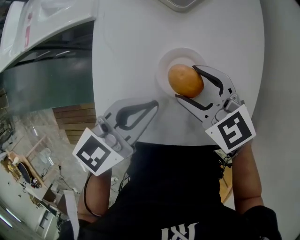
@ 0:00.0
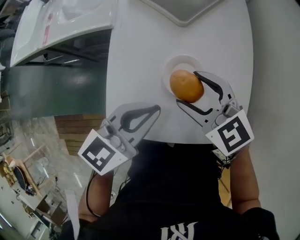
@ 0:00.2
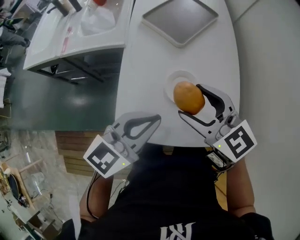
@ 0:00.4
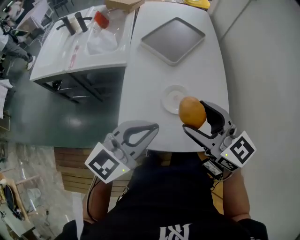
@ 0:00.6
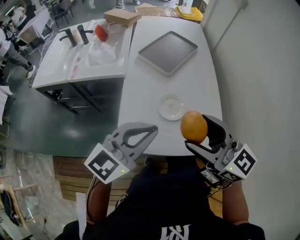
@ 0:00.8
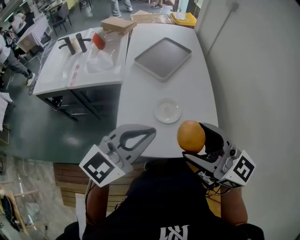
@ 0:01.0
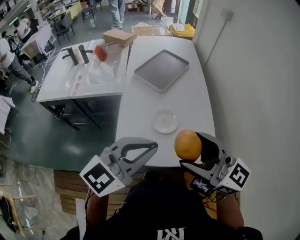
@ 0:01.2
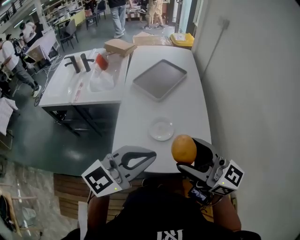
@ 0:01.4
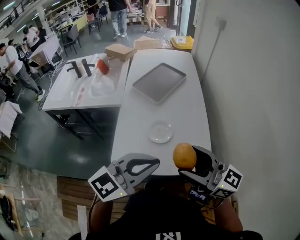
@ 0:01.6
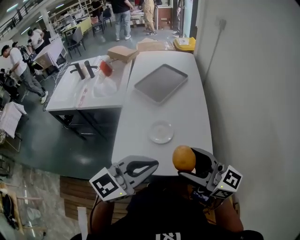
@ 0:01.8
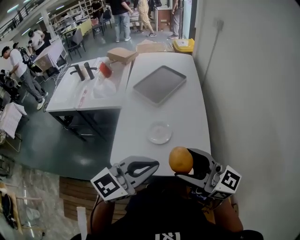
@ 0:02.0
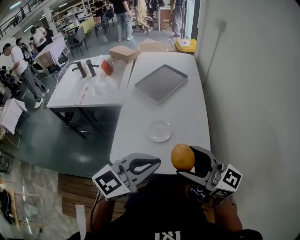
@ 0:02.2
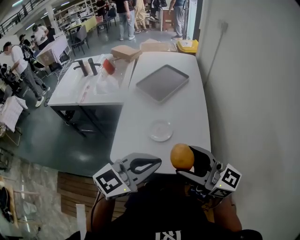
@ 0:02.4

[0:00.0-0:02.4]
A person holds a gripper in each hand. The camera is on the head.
0:00.0 to 0:01.2: Both grippers move upward and backward, approximately 40 cm. The right gripper tips its fingers upward by some 40 degrees; the left gripper turns by about 30 degrees.
0:01.2 to 0:02.4: The right gripper is displaced to the right by about 10 cm, while the left gripper shifts some 10 cm to the right and backward.

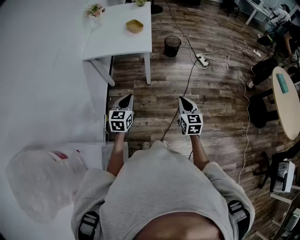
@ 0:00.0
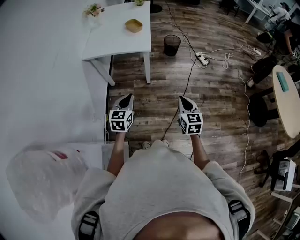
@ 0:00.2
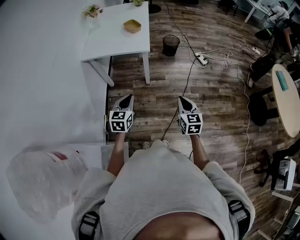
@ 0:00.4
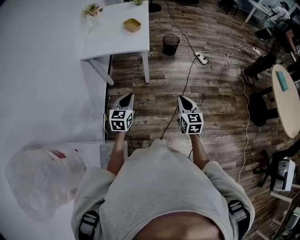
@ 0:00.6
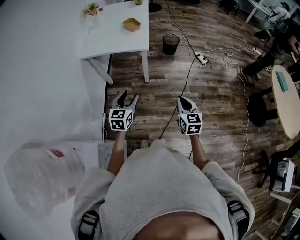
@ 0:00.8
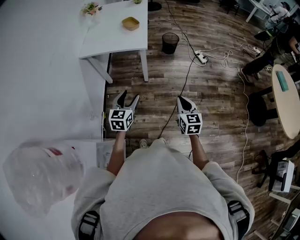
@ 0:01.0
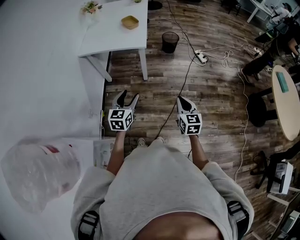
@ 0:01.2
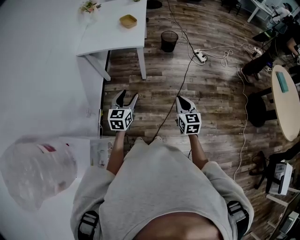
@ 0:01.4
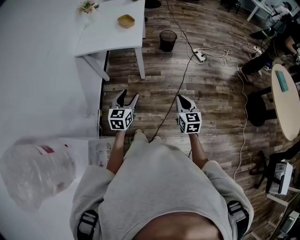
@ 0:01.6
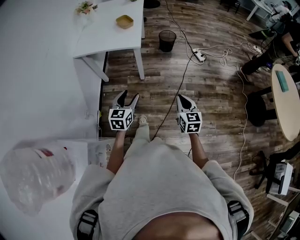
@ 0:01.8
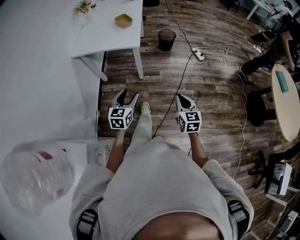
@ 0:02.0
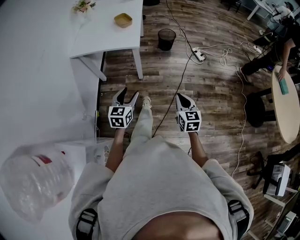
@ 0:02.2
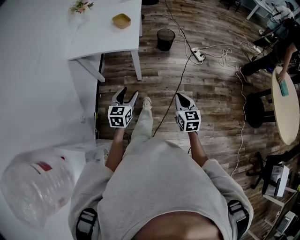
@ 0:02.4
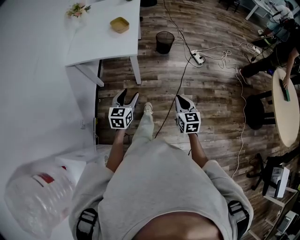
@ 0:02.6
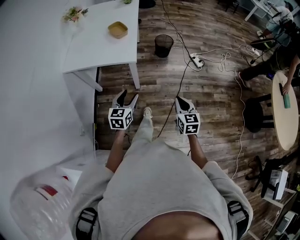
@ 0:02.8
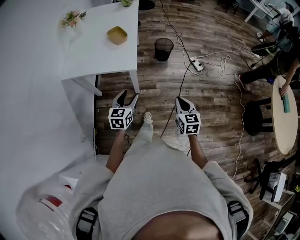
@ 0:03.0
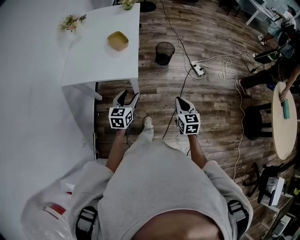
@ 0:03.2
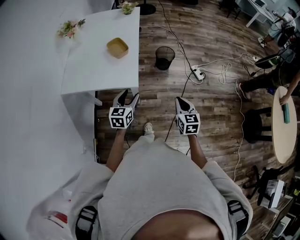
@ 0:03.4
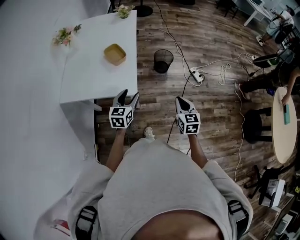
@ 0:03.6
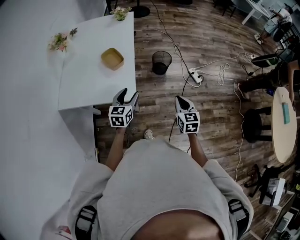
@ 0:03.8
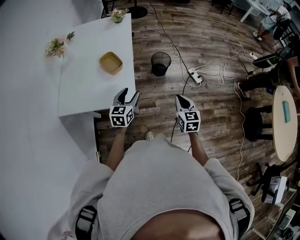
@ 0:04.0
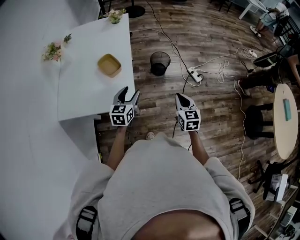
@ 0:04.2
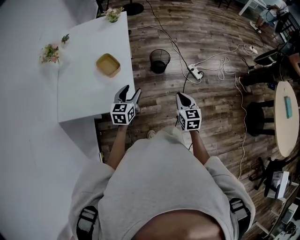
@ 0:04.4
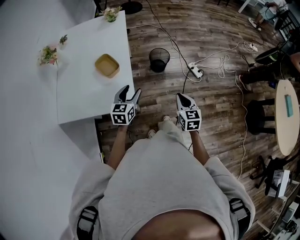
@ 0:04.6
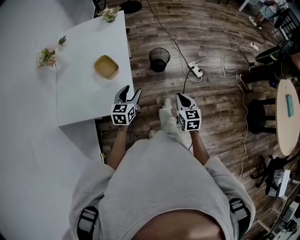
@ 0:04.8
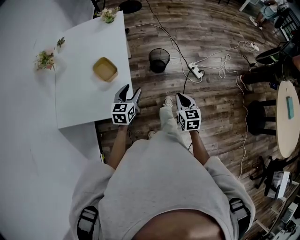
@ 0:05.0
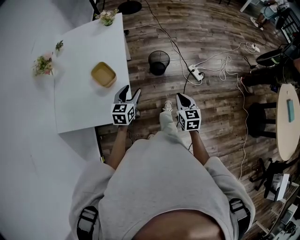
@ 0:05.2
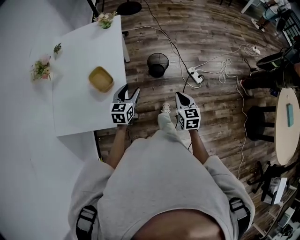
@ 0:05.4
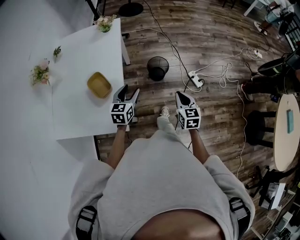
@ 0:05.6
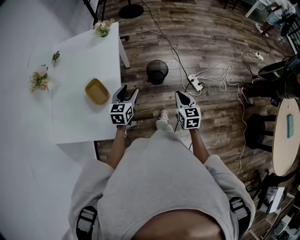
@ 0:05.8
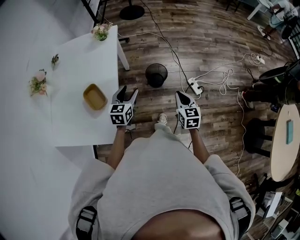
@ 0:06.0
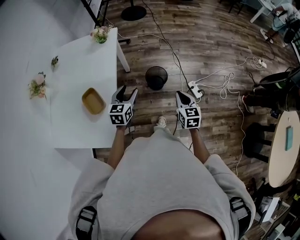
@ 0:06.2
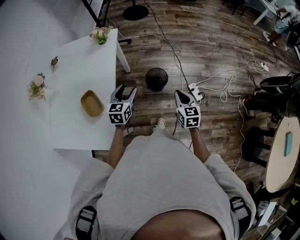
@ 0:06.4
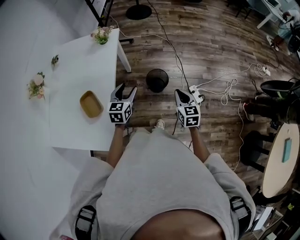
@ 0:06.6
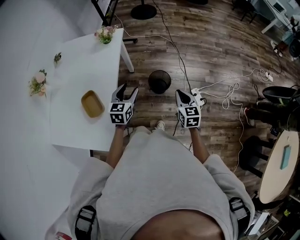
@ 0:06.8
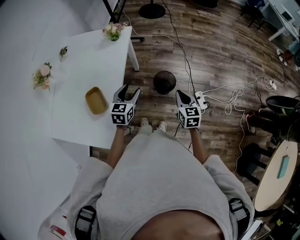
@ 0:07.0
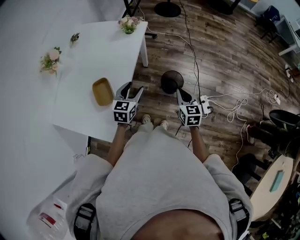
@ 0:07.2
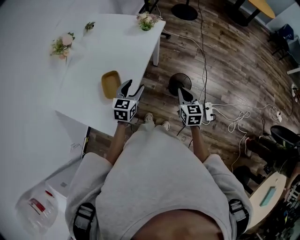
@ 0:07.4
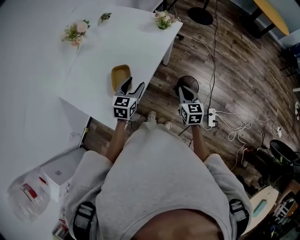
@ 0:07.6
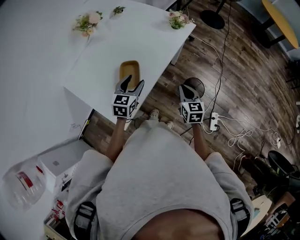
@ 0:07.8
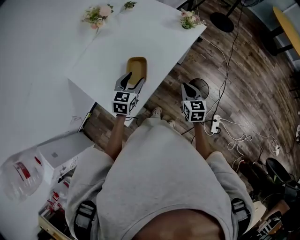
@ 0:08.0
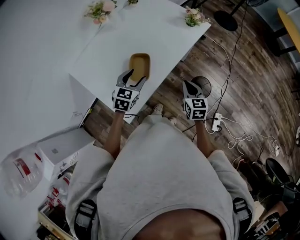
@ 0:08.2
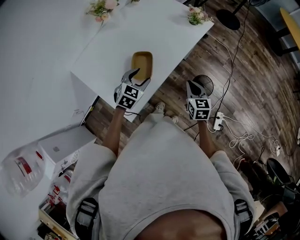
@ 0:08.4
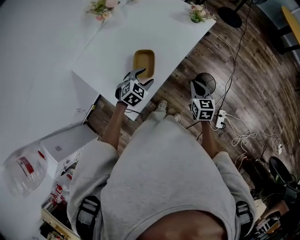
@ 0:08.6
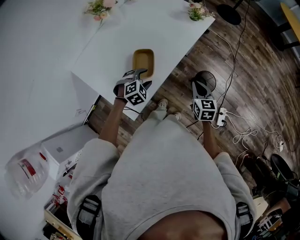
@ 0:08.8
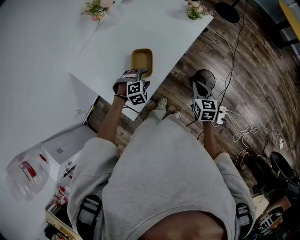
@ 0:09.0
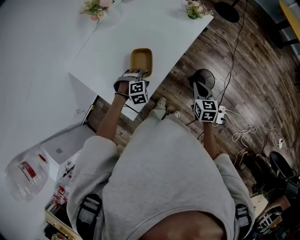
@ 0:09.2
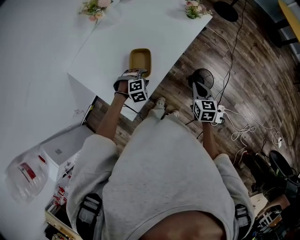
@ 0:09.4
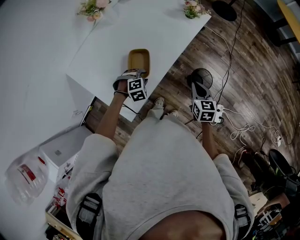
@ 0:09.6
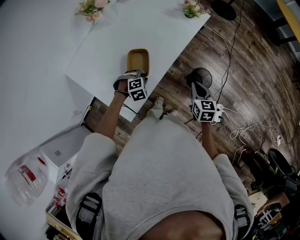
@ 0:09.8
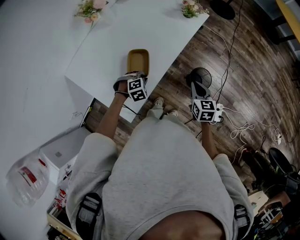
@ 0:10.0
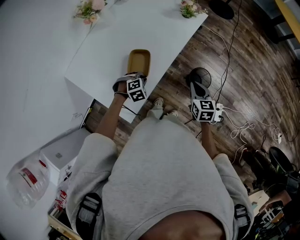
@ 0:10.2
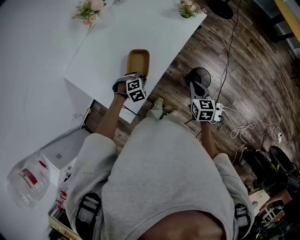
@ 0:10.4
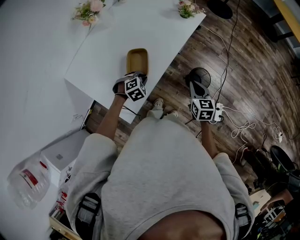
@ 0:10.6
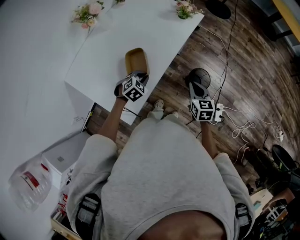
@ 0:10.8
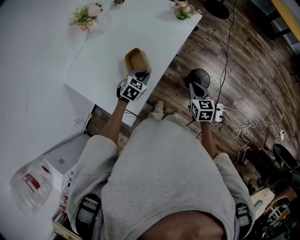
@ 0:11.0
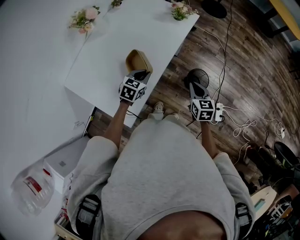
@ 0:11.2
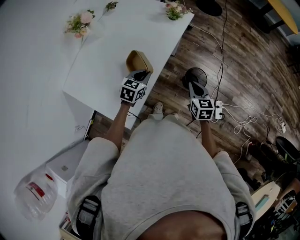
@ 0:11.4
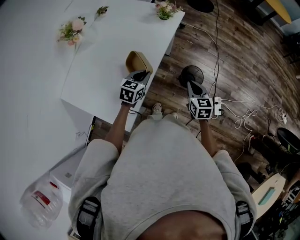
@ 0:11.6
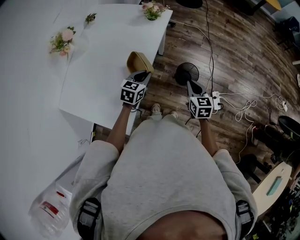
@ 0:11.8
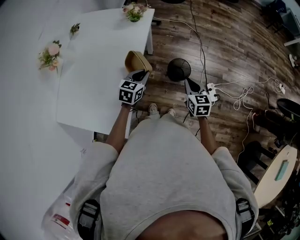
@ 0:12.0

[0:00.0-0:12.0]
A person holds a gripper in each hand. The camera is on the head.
0:00.0 to 0:01.6: The grippers both shift to the right by roughly 10 cm. The left gripper opens.
0:01.6 to 0:03.0: Both grippers move forward, some 25 cm.
0:03.0 to 0:04.4: The grippers both shift forward by about 25 cm.
0:04.4 to 0:06.0: The grippers both shift forward by approximately 25 cm.
0:06.0 to 0:07.6: The right gripper changes place by approximately 20 cm, and changes its angle by roughly 30 degrees; the left gripper moves approximately 15 cm, and rotates some 30 degrees.
0:07.6 to 0:09.0: The left gripper is displaced downward and to the left by roughly 15 cm, and rotates around the line of its fingers by some 50 degrees, clockwise from behind.
0:09.0 to 0:10.4: The left gripper closes up.
0:10.4 to 0:12.0: The left gripper goes some 20 cm to the right, upward and forward, and tips its fingers upward by about 30 degrees. Meanwhile the right gripper heads to the right, covering approximately 10 cm, and swivels some 20 degrees.

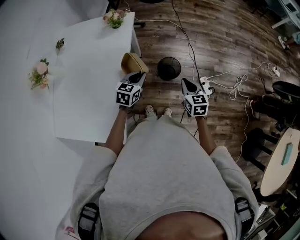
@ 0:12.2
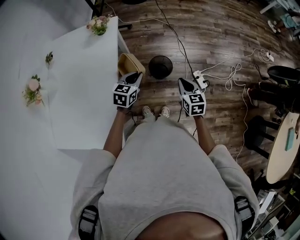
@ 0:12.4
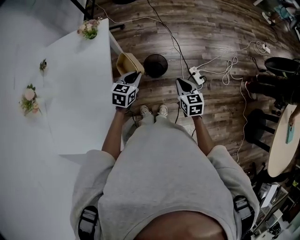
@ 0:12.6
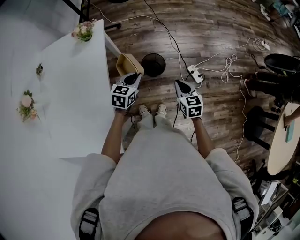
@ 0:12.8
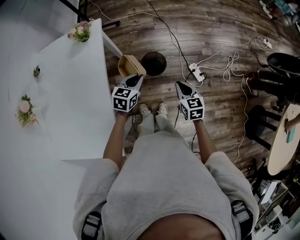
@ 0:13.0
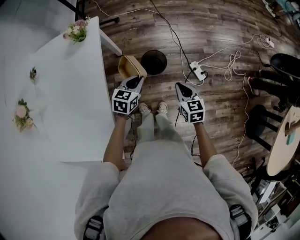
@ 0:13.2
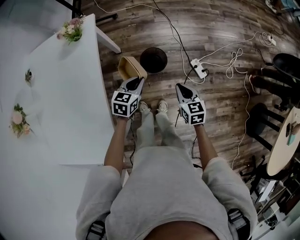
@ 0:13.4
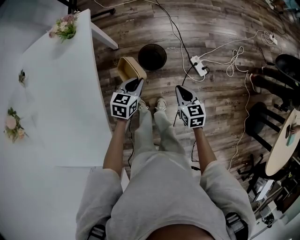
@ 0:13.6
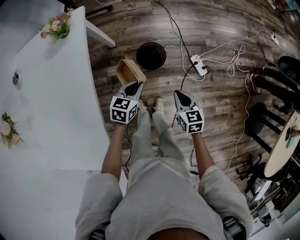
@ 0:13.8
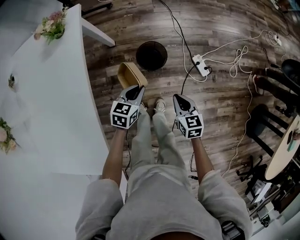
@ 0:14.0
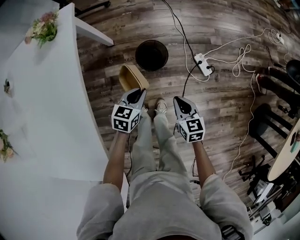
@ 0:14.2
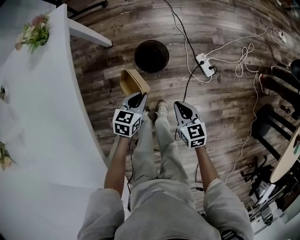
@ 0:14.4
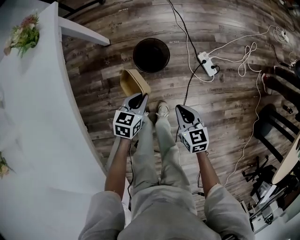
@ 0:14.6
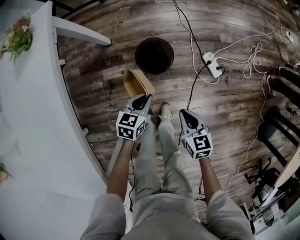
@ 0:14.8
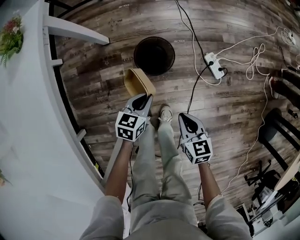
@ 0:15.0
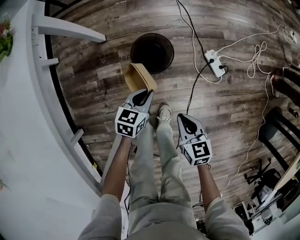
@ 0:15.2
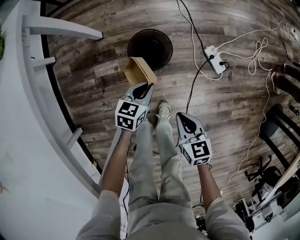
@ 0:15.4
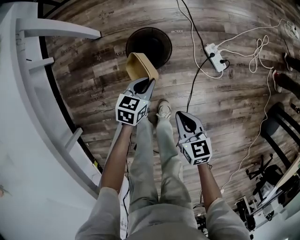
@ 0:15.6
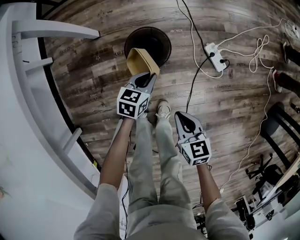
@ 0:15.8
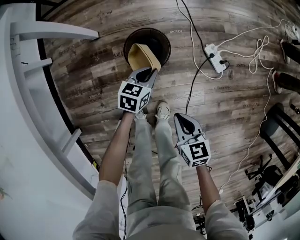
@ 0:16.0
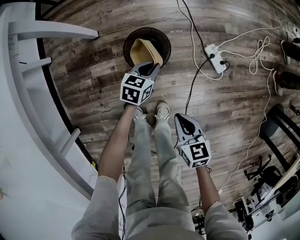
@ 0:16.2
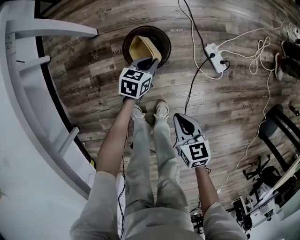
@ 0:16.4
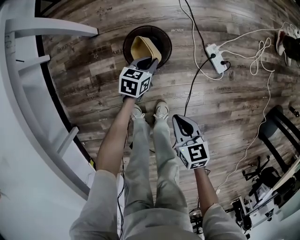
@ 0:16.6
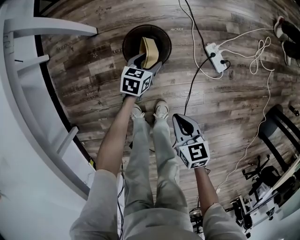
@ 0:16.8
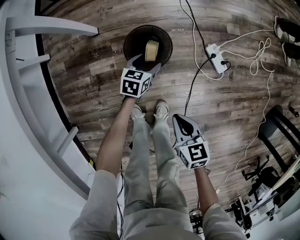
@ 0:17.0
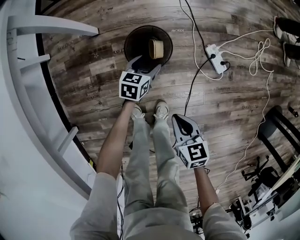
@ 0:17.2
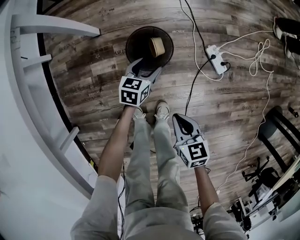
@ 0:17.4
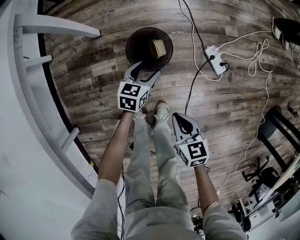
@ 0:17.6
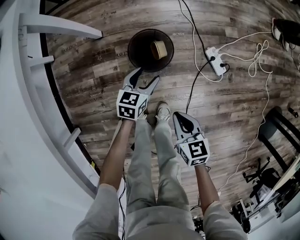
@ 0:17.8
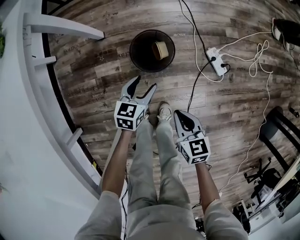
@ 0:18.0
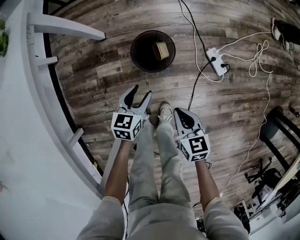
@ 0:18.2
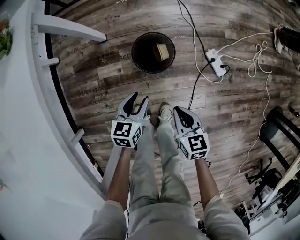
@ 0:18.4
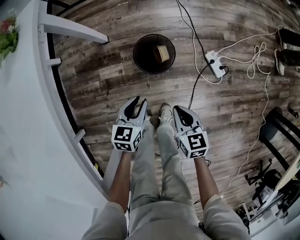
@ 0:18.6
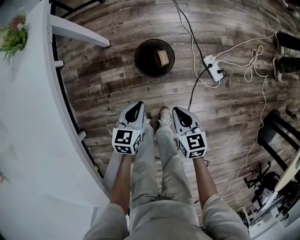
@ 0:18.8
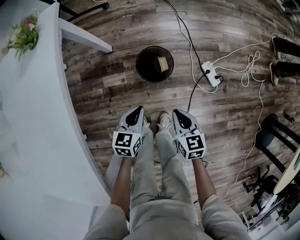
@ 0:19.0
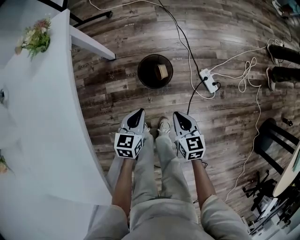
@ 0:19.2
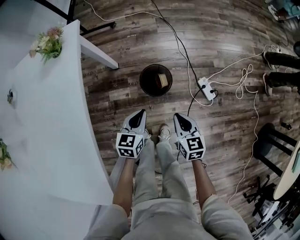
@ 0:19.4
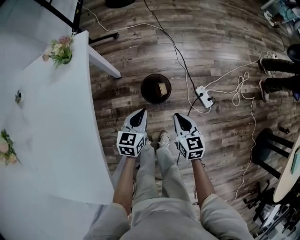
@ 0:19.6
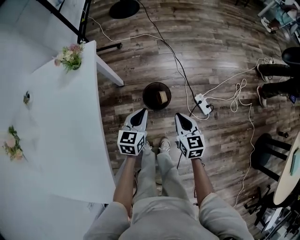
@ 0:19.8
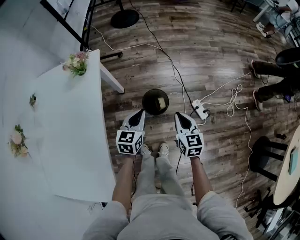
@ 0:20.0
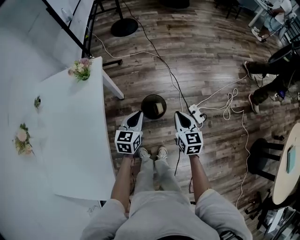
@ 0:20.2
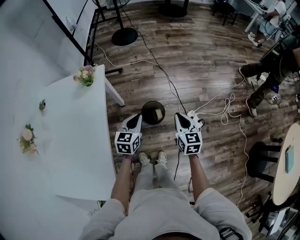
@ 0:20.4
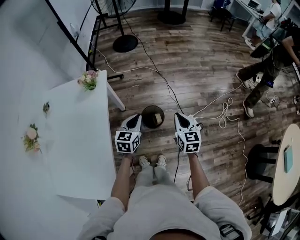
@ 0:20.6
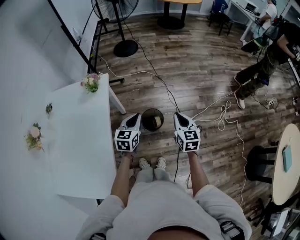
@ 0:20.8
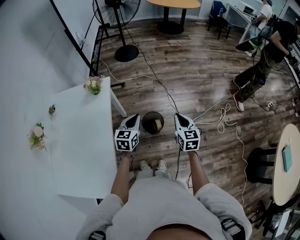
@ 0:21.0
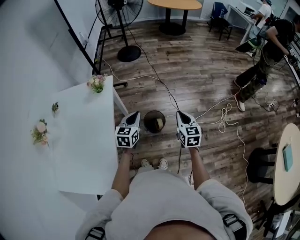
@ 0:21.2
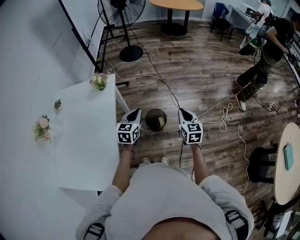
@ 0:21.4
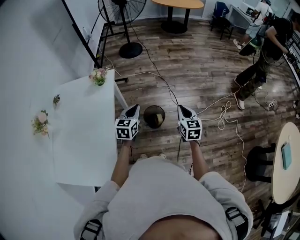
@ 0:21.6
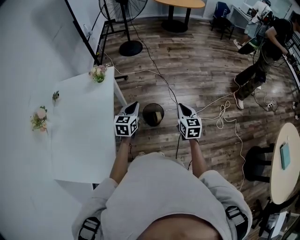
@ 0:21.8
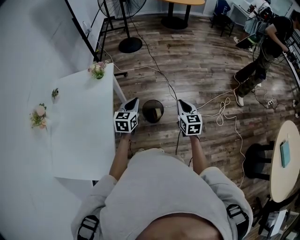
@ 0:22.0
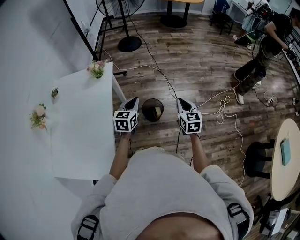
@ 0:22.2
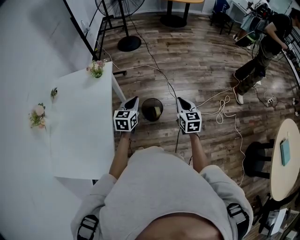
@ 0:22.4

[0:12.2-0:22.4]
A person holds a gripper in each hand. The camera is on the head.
0:12.2 to 0:13.6: The right gripper moves downward and to the right, some 15 cm. The left gripper moves downward, to the right and forward, about 15 cm.
0:13.6 to 0:15.2: Both grippers travel together downward, about 25 cm.
0:15.2 to 0:16.6: The left gripper is displaced downward and forward by roughly 15 cm.
0:16.6 to 0:18.0: The left gripper travels upward, backward and to the left by approximately 15 cm, and opens.
0:18.0 to 0:19.4: The grippers both shift upward by approximately 15 cm. The left gripper closes up.
0:19.4 to 0:21.0: The grippers both shift upward by about 30 cm.
0:21.0 to 0:22.4: The grippers stay close to where they were, moving slightly.
